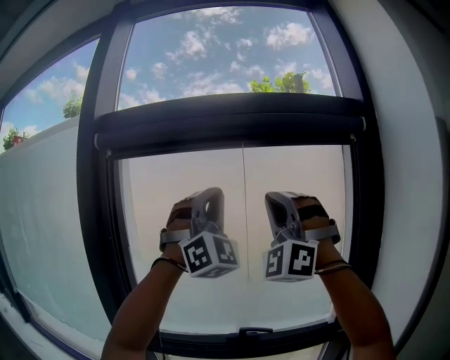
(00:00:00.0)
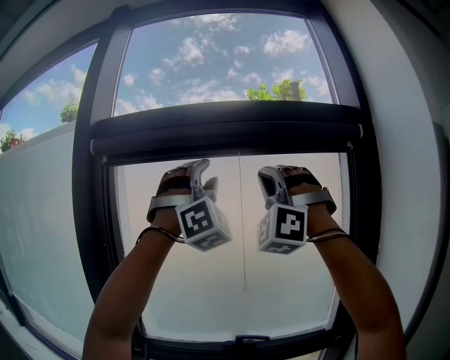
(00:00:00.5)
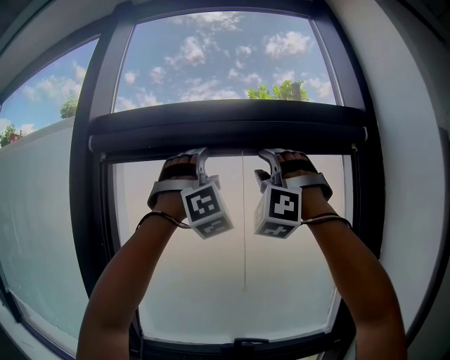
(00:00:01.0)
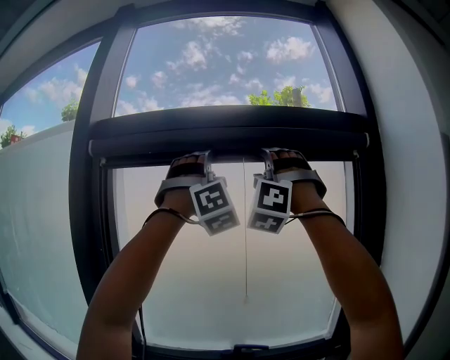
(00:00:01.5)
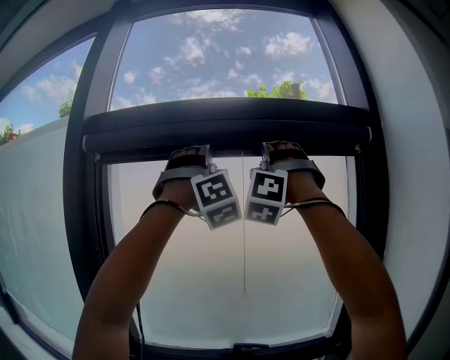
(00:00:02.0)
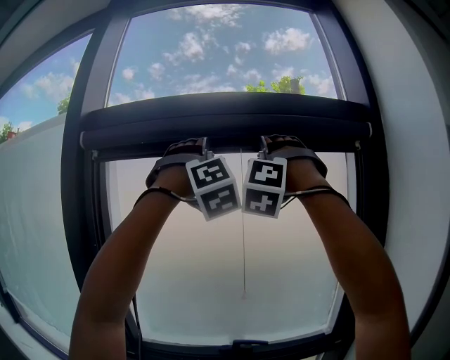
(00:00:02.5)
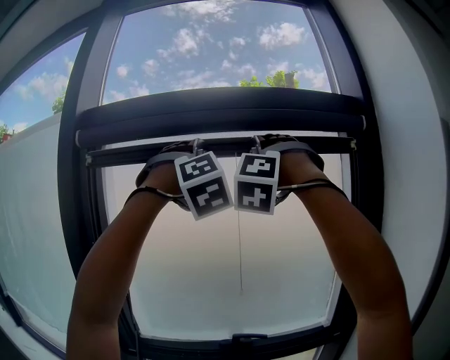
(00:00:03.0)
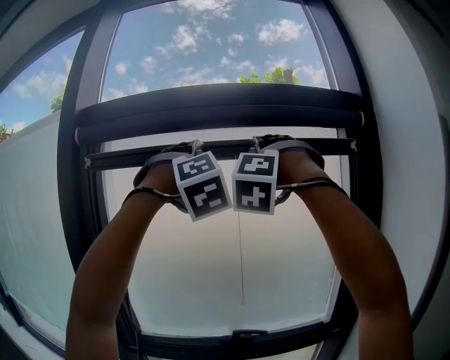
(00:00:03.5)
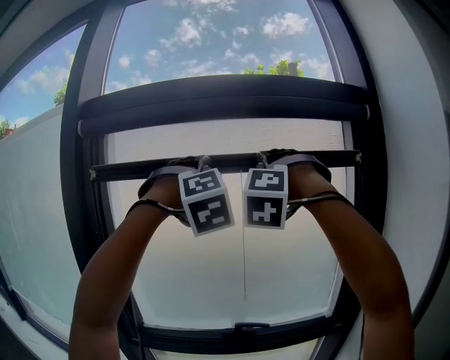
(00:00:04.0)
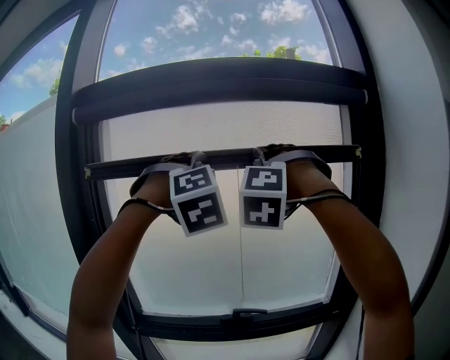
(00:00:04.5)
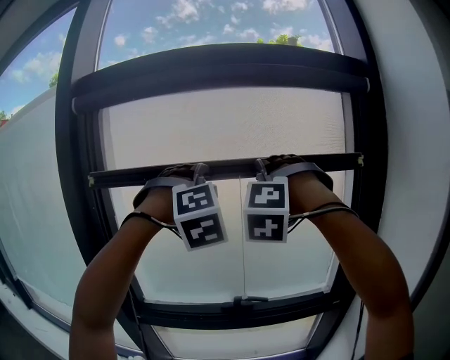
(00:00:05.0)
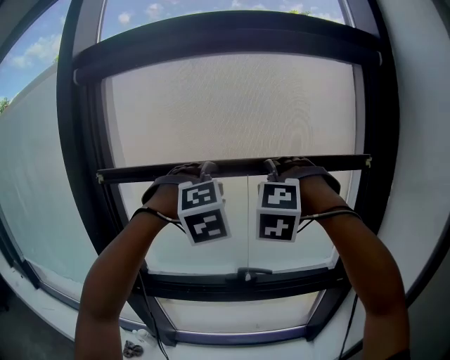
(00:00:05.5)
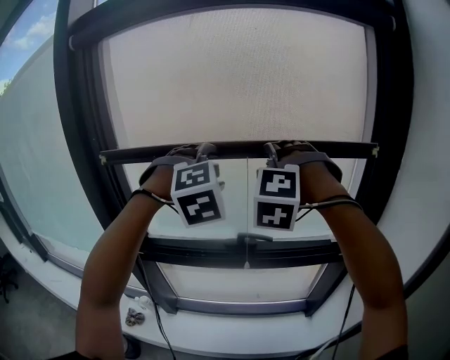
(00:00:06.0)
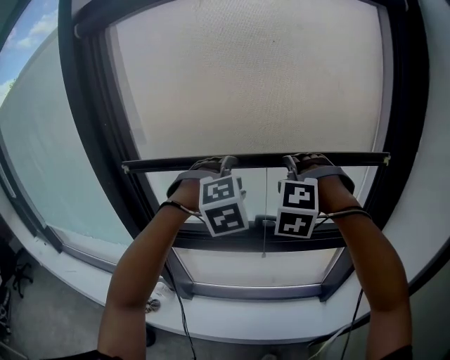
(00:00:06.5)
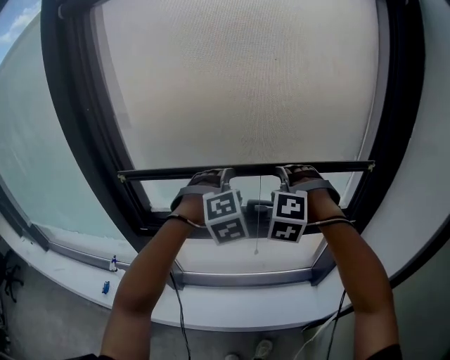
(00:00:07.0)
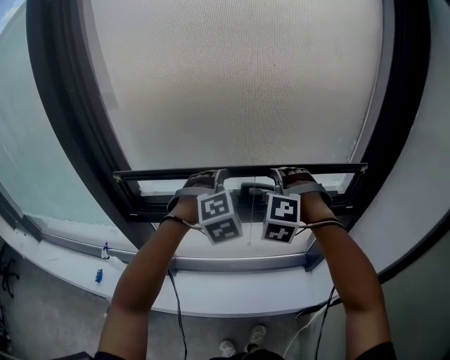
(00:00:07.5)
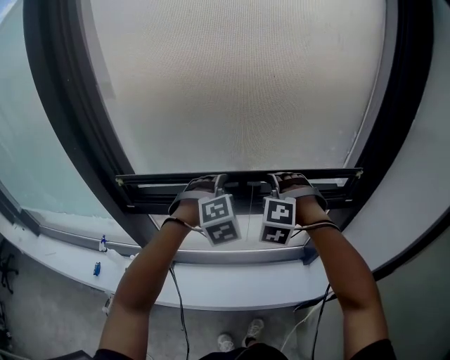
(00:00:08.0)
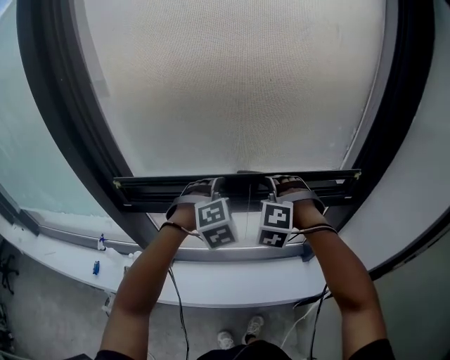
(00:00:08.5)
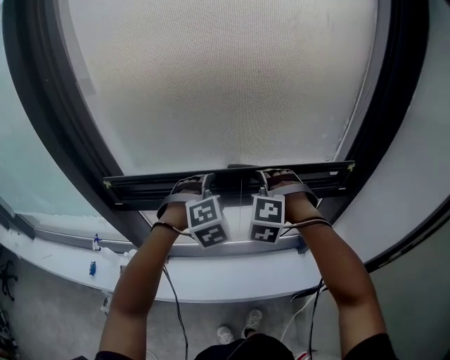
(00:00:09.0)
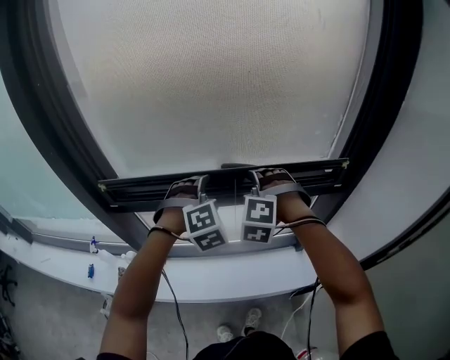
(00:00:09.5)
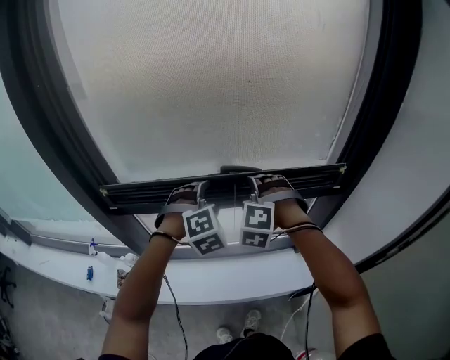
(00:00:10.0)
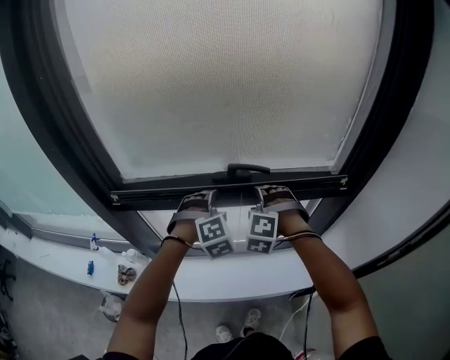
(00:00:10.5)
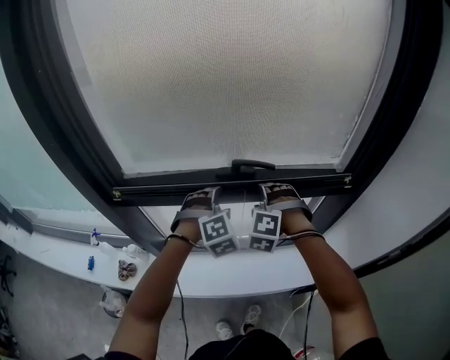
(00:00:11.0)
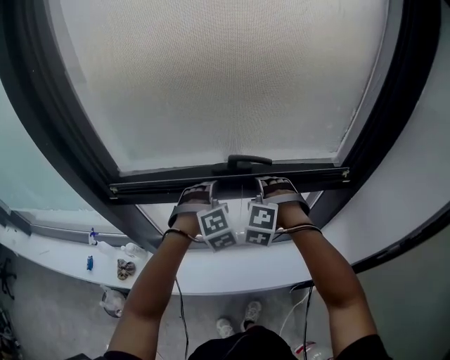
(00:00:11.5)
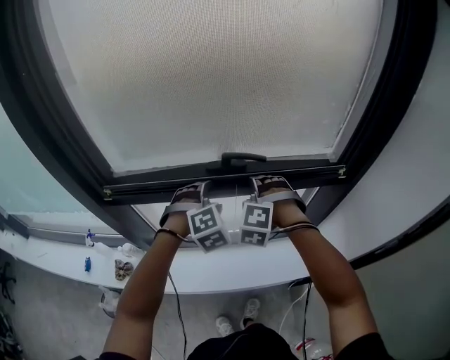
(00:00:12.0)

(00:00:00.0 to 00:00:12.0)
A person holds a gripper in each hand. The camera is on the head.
00:00:00.0 - 00:00:02.0: Both grippers travel together upward and forward, approximately 15 cm. The left gripper turns by some 30 degrees, and opens up. Meanwhile the right gripper turns by some 20 degrees, and opens up.
00:00:02.0 - 00:00:04.0: Both grippers move downward, roughly 10 cm. The right gripper rotates roughly 30 degrees; the left gripper swivels some 30 degrees.
00:00:04.0 - 00:00:06.0: Both grippers travel together downward, approximately 25 cm. The left gripper changes its angle by about 20 degrees.
00:00:06.0 - 00:00:08.0: The grippers both shift downward by approximately 30 cm.
00:00:08.0 - 00:00:10.0: The grippers make only small movements.
00:00:10.0 - 00:00:12.0: Both grippers move downward, some 5 cm.

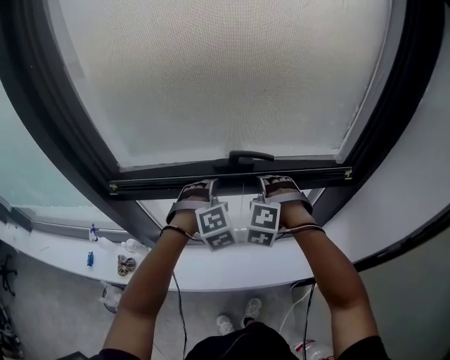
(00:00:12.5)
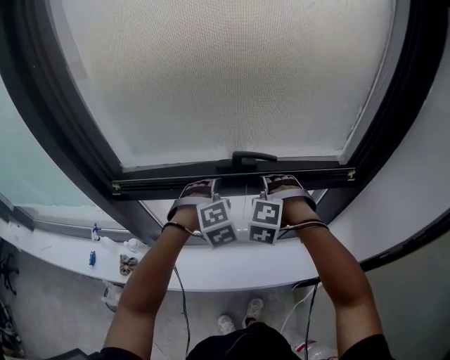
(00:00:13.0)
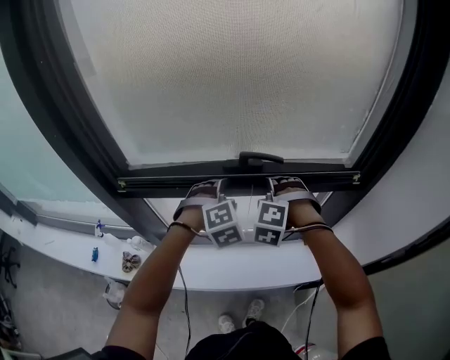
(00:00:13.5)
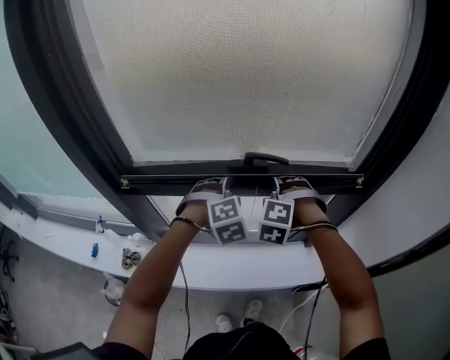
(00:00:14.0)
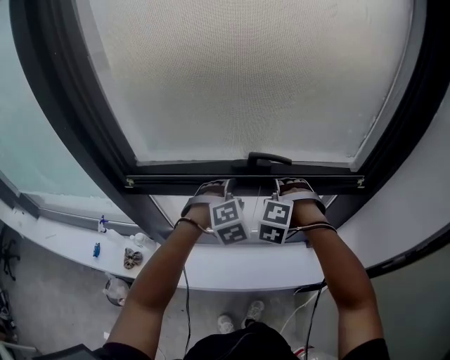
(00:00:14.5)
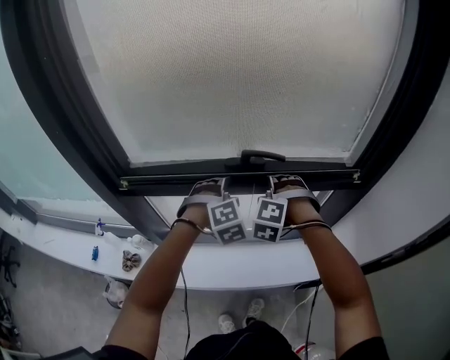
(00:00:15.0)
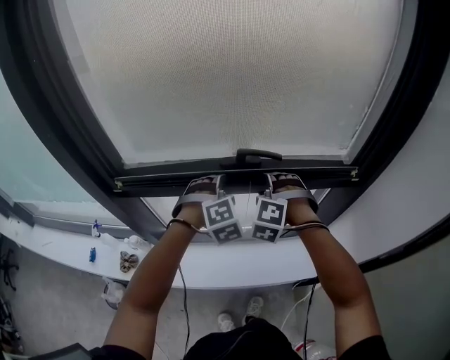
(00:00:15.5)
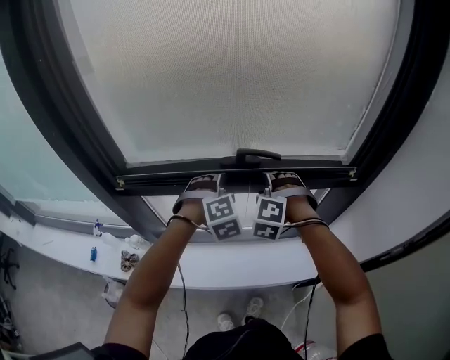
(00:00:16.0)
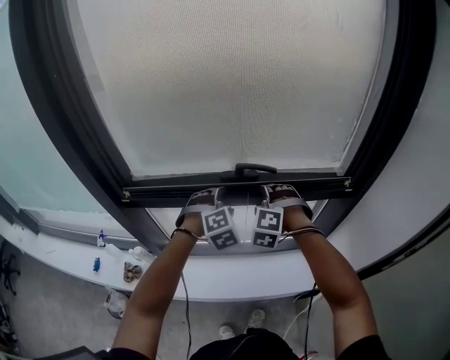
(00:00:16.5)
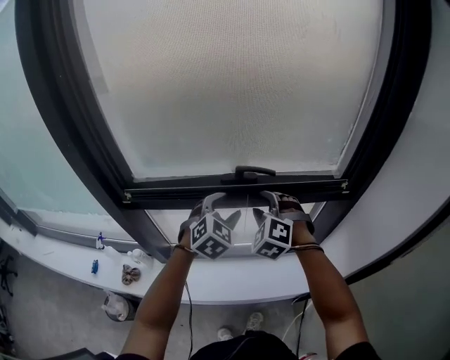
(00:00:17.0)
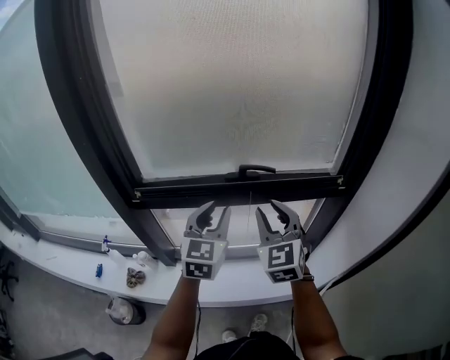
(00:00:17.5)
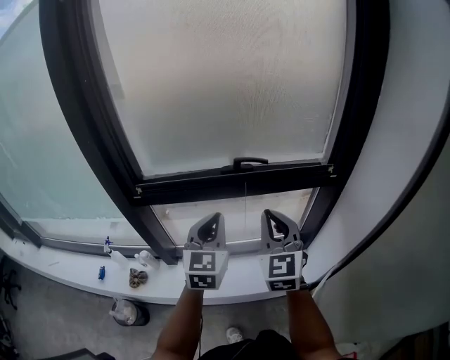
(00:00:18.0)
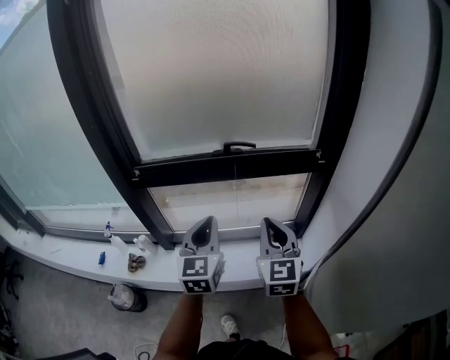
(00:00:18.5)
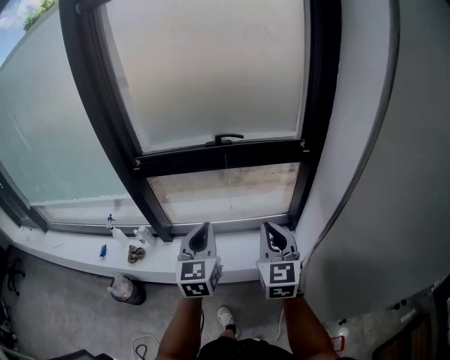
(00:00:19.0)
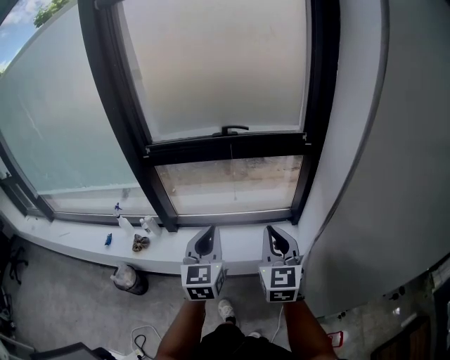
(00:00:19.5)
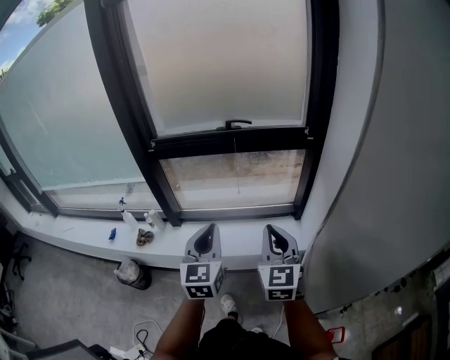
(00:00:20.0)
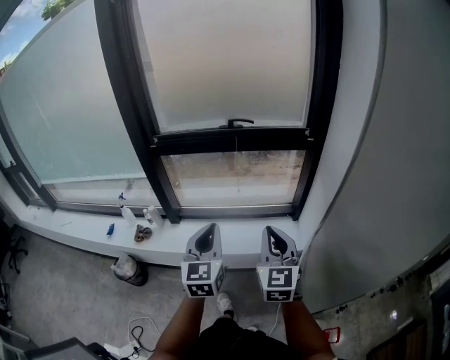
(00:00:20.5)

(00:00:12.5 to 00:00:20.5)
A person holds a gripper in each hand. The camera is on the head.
00:00:12.5 - 00:00:16.5: The grippers stay close to where they were, moving slightly.
00:00:16.5 - 00:00:18.5: The two grippers go roughly 25 cm backward. The left gripper rotates around the line of its fingers by roughly 60 degrees, counterclockwise from behind, and closes its fingers. The right gripper rolls clockwise, seen from behind, by approximately 70 degrees, and closes.
00:00:18.5 - 00:00:20.5: Both grippers move backward, some 20 cm.

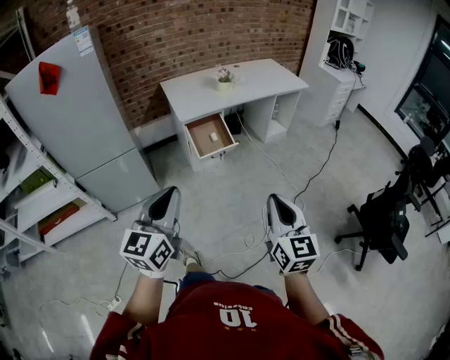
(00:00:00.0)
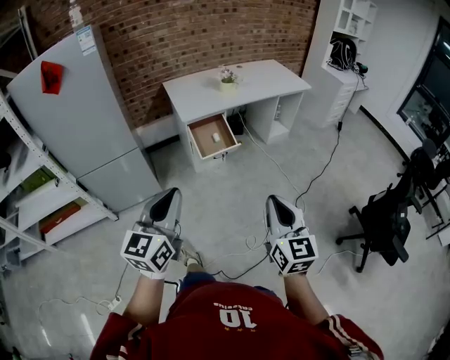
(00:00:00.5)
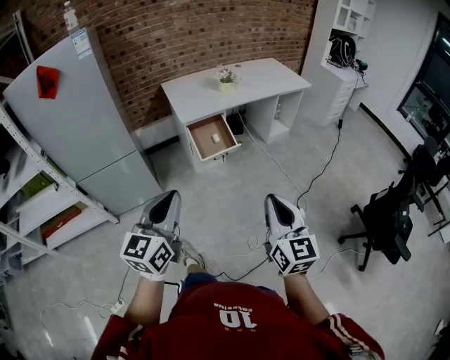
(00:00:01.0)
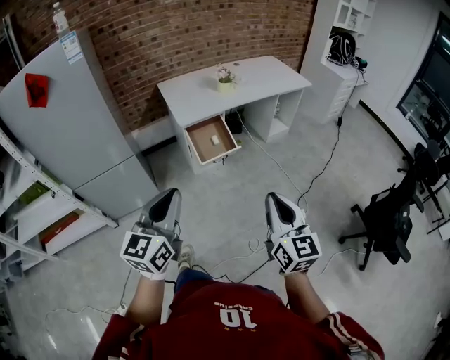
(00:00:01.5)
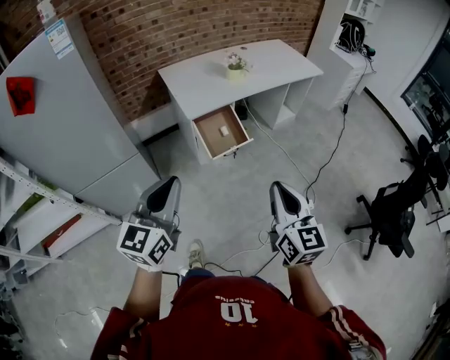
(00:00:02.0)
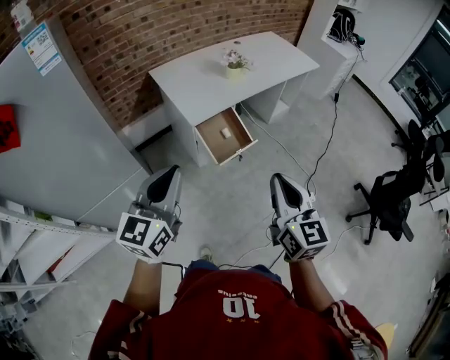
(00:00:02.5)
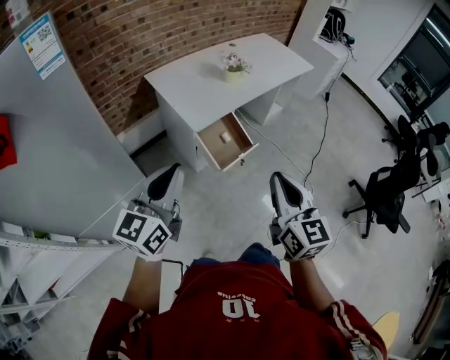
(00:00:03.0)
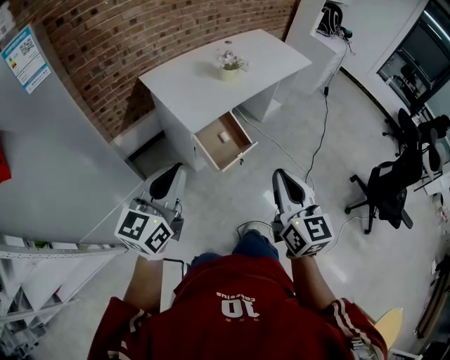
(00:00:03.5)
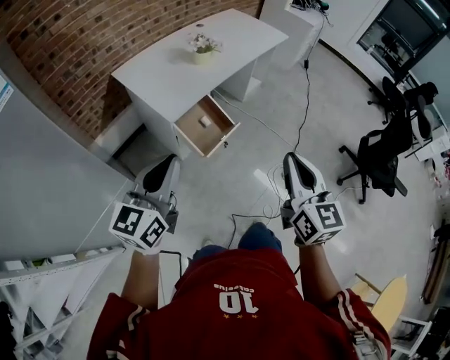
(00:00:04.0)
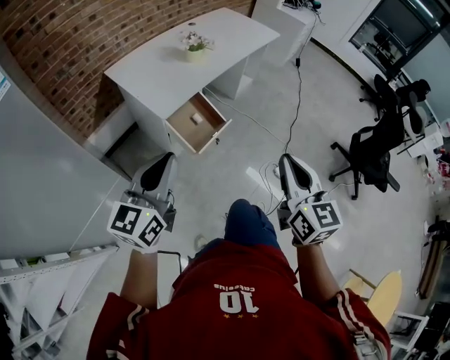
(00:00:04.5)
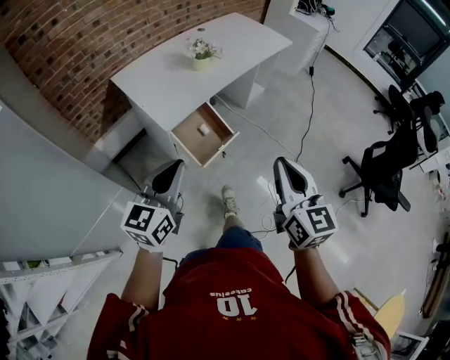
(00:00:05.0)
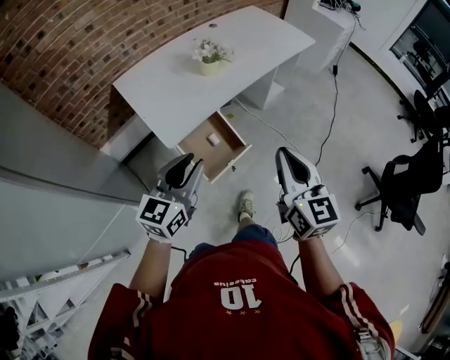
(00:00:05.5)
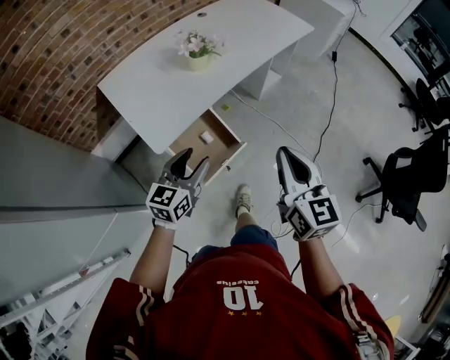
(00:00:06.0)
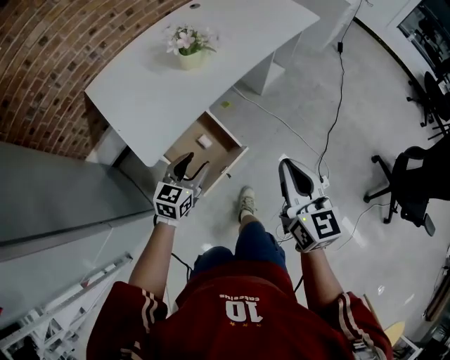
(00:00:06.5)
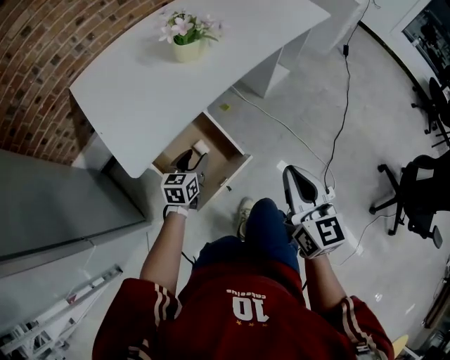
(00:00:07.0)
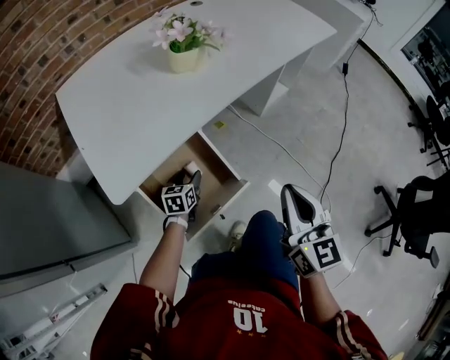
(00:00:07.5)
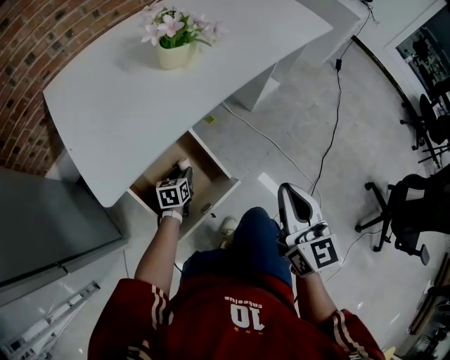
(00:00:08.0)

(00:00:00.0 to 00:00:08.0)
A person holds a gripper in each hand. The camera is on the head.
00:00:00.0 - 00:00:02.0: Both grippers move forward and to the left, some 20 cm.
00:00:02.0 - 00:00:04.0: The left gripper goes approximately 20 cm forward and to the left, and turns by some 20 degrees, while the right gripper shifts about 15 cm to the left and forward, and swivels approximately 20 degrees.
00:00:04.0 - 00:00:06.0: The left gripper travels forward and downward by roughly 35 cm, and opens its fingers, while the right gripper goes about 25 cm forward.
00:00:06.0 - 00:00:08.0: The right gripper heads downward and forward, covering about 25 cm. The left gripper shifts approximately 50 cm downward and forward, and rotates approximately 30 degrees.
